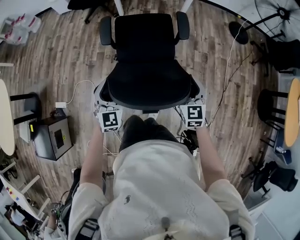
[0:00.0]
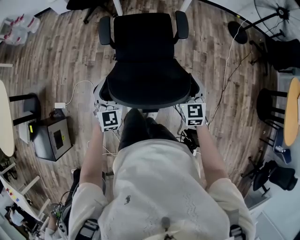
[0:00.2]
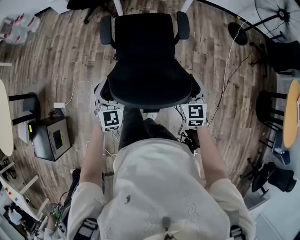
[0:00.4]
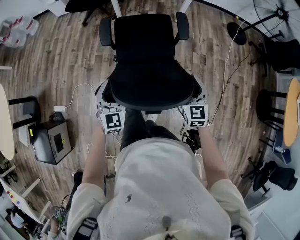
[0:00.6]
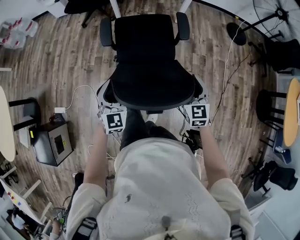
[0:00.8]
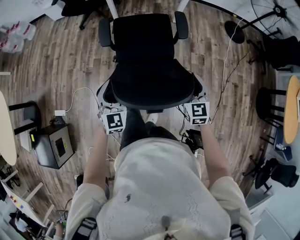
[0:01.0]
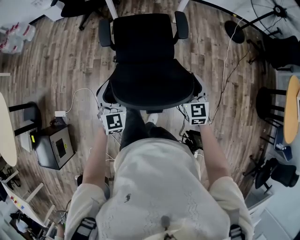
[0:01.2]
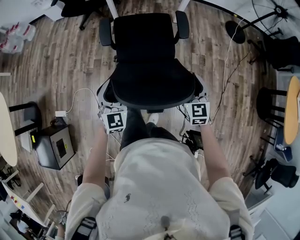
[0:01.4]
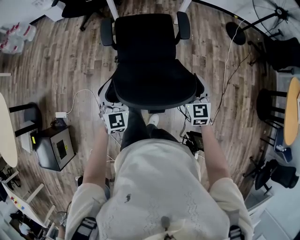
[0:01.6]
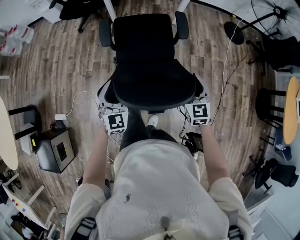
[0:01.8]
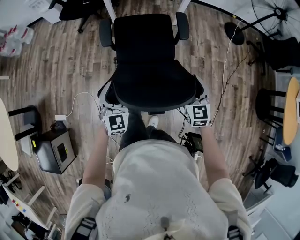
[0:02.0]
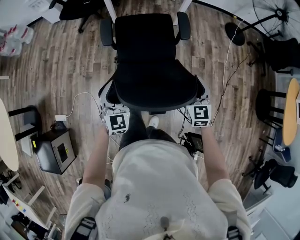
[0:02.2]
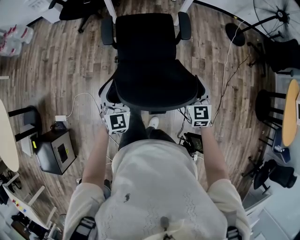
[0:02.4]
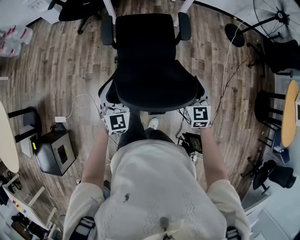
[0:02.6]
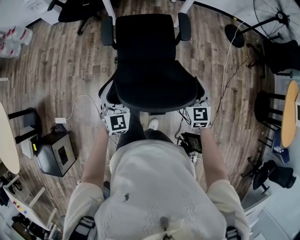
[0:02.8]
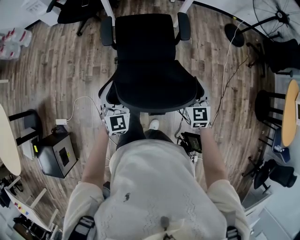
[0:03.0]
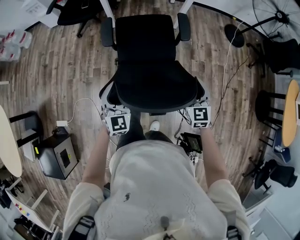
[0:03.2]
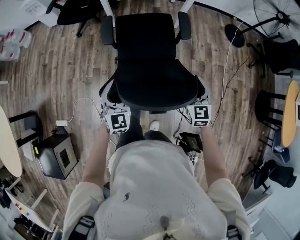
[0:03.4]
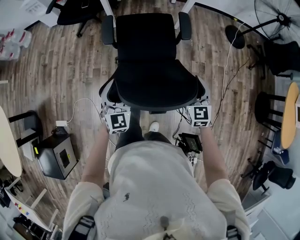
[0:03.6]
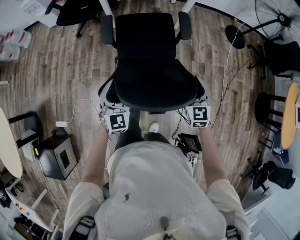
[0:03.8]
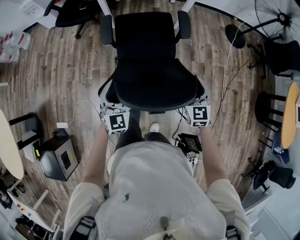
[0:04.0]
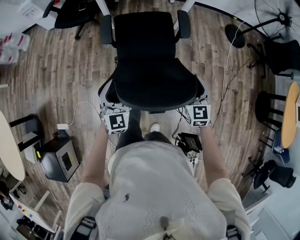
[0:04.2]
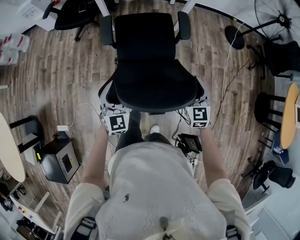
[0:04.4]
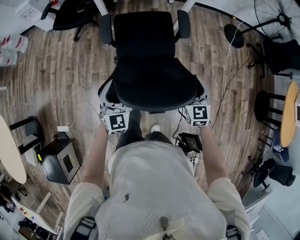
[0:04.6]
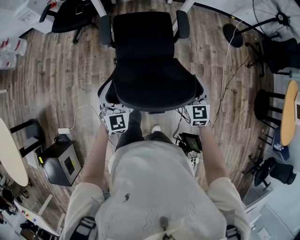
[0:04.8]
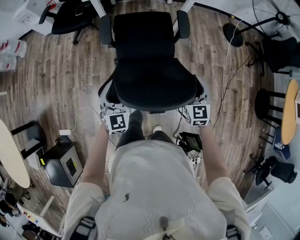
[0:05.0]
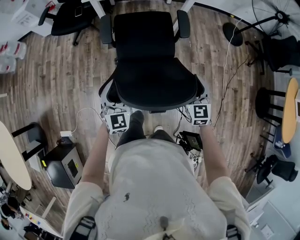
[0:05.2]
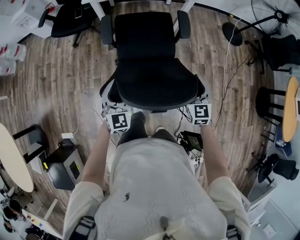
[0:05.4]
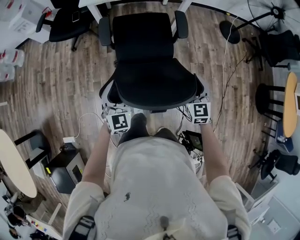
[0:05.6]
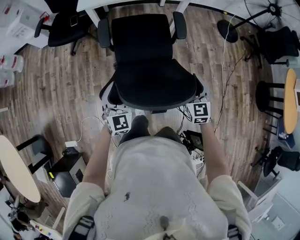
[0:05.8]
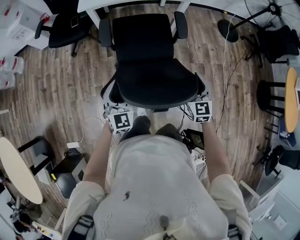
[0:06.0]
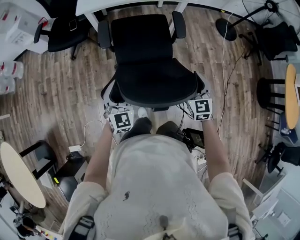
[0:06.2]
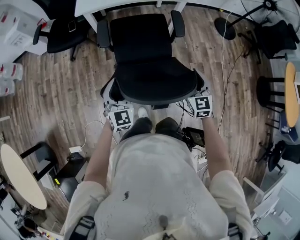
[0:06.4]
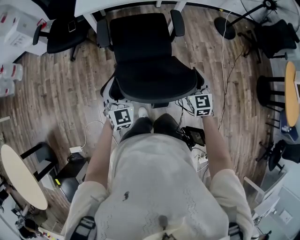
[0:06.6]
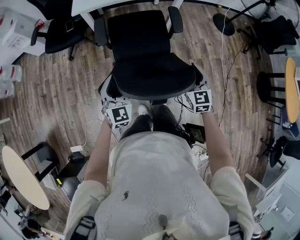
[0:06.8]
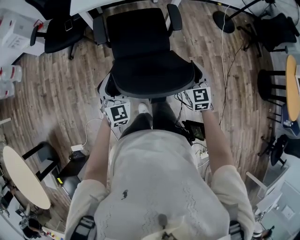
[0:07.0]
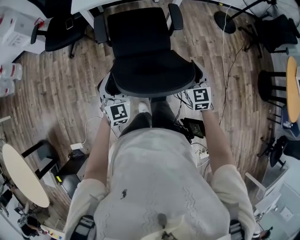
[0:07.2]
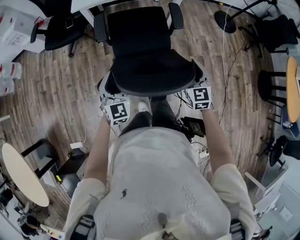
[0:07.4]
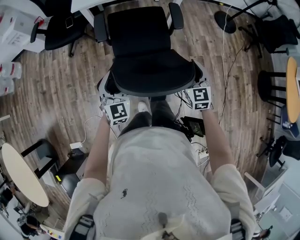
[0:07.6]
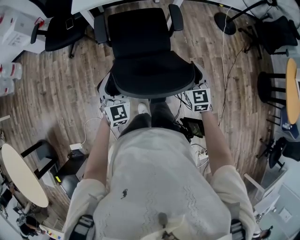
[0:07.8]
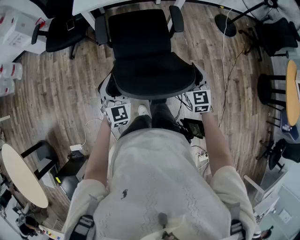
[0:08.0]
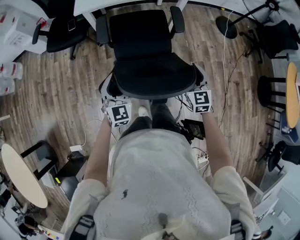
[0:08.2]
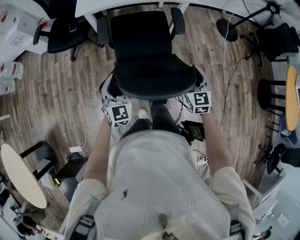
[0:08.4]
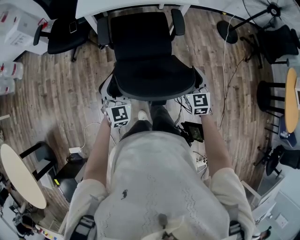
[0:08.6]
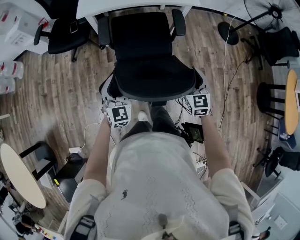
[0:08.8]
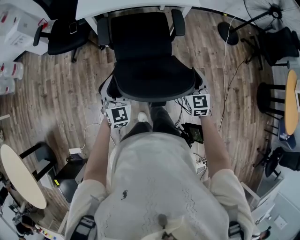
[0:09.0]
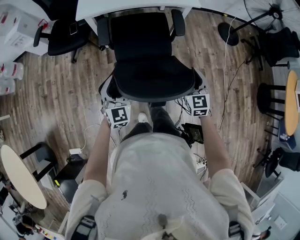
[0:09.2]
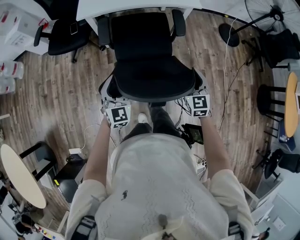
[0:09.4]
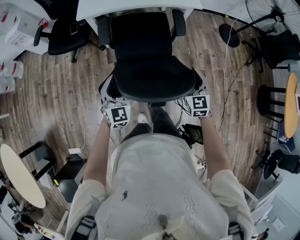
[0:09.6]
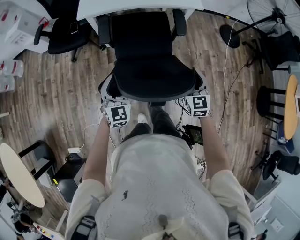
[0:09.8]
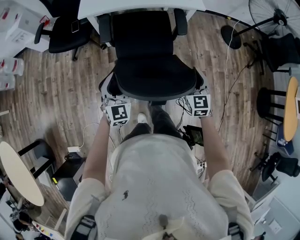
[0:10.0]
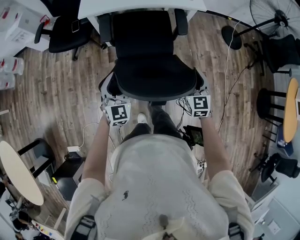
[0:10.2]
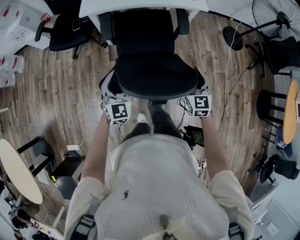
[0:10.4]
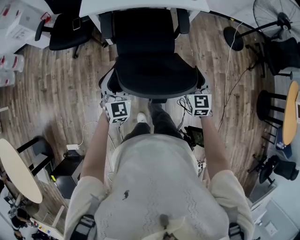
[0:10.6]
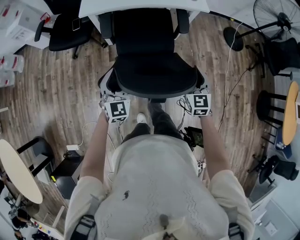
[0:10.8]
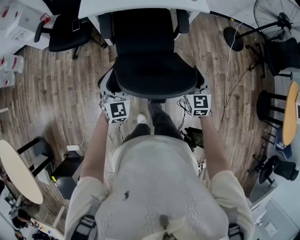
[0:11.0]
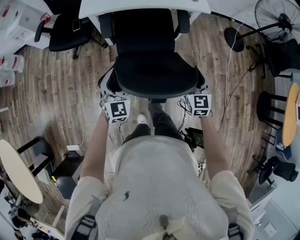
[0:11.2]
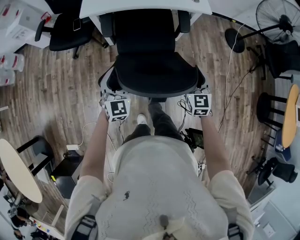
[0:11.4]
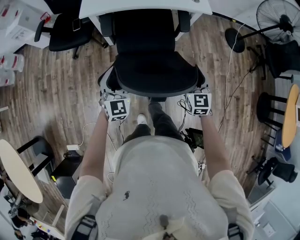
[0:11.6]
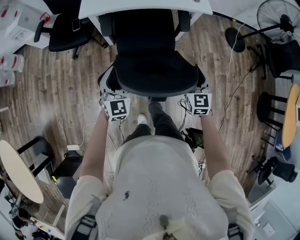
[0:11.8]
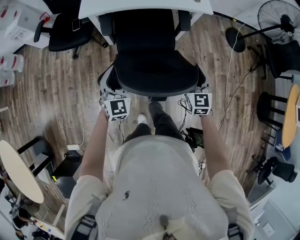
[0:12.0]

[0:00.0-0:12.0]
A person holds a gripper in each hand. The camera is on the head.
0:00.0 to 0:01.6: The grippers both shift forward by some 10 cm.
0:01.6 to 0:03.0: The grippers both shift forward by some 10 cm.
0:03.0 to 0:04.4: The grippers both shift forward by some 10 cm.
0:04.4 to 0:06.0: The grippers both shift forward and to the left by some 10 cm.
0:06.0 to 0:07.6: There are only small adjustments of the grippers.
0:07.6 to 0:09.0: The grippers both shift forward by some 10 cm.
0:09.0 to 0:10.4: The two grippers go roughly 5 cm forward.
0:10.4 to 0:12.0: Both grippers travel together forward, some 10 cm.

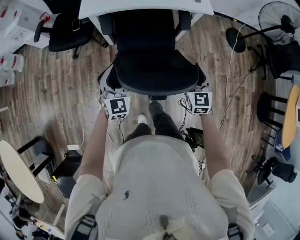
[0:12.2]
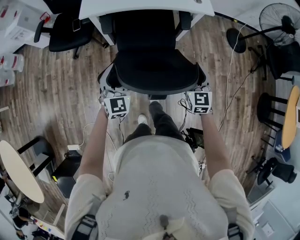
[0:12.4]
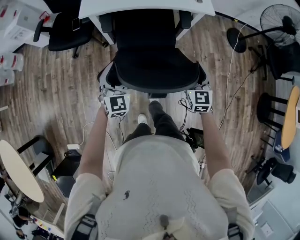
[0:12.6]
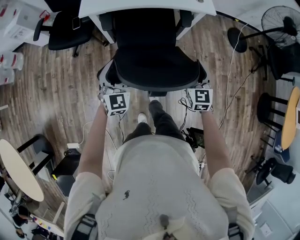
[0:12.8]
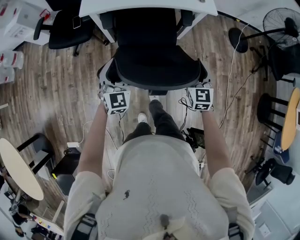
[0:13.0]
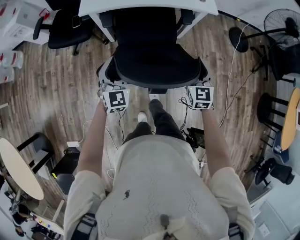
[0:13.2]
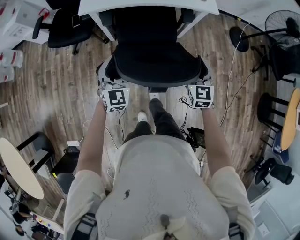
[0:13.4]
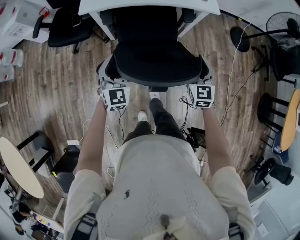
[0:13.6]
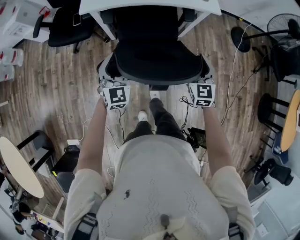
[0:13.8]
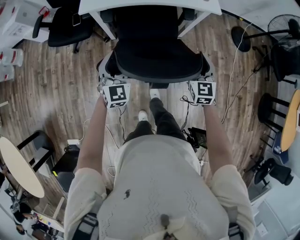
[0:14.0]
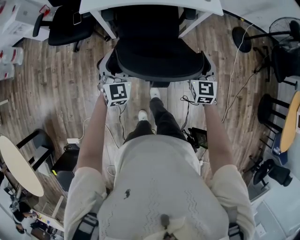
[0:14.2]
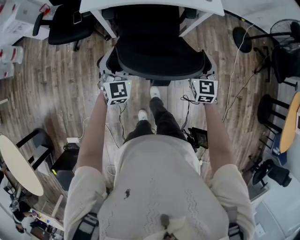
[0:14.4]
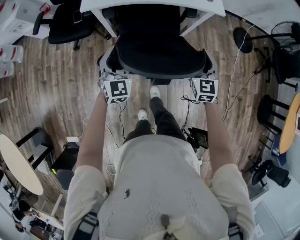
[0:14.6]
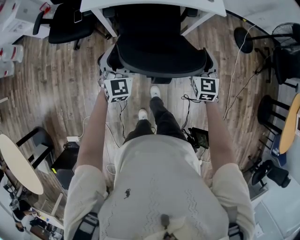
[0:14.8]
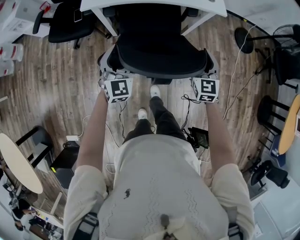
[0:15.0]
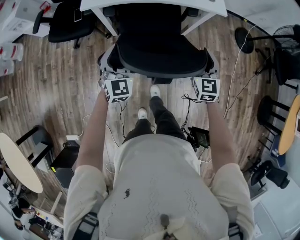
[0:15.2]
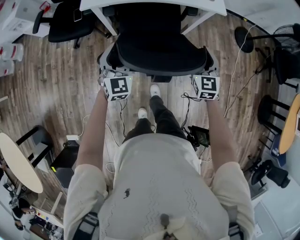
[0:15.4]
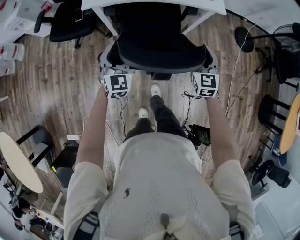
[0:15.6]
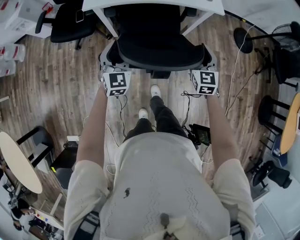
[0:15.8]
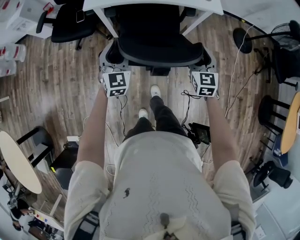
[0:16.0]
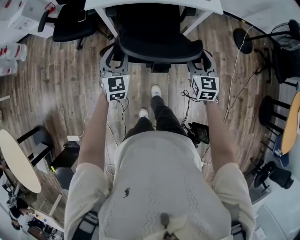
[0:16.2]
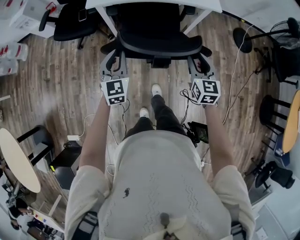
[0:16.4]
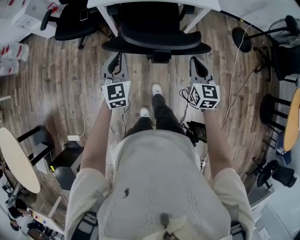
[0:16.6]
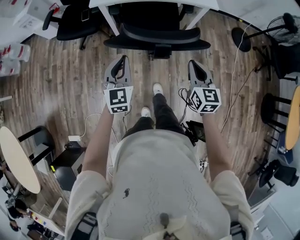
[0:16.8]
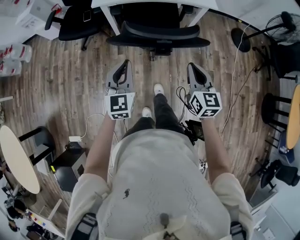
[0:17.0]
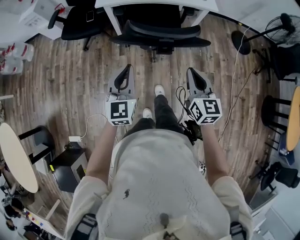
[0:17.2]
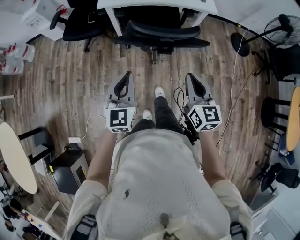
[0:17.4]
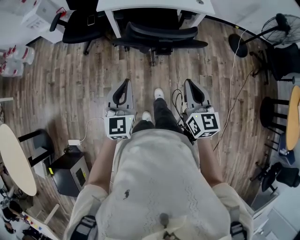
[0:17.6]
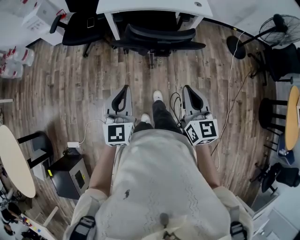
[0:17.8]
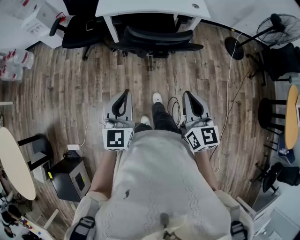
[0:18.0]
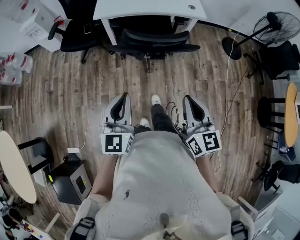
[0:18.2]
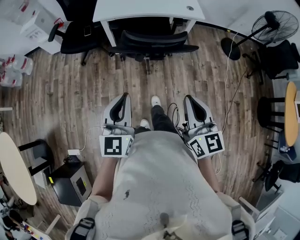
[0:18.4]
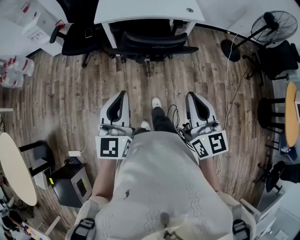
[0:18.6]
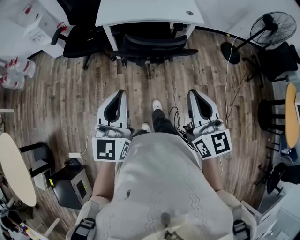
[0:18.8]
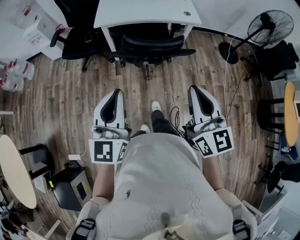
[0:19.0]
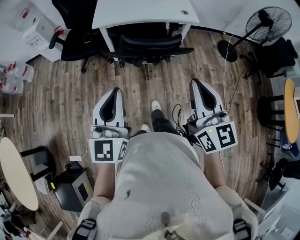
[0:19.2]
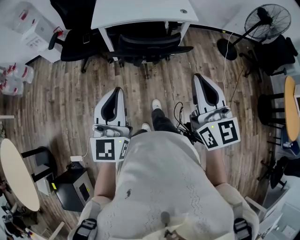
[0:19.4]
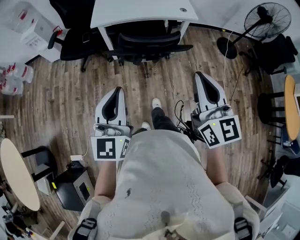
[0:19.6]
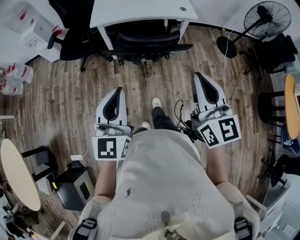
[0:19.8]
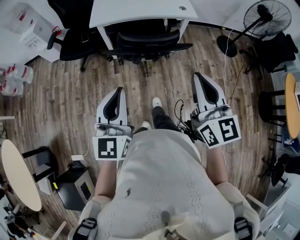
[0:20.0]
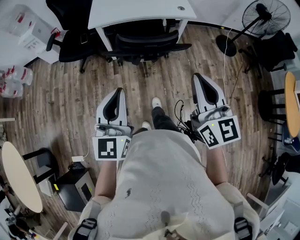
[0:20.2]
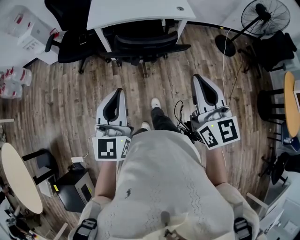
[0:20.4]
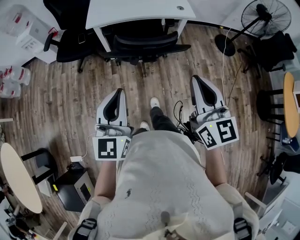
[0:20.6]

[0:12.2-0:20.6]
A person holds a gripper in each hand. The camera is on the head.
0:12.2 to 0:13.6: Both grippers move forward, roughly 10 cm.
0:13.6 to 0:15.0: Both grippers travel together forward, approximately 5 cm.
0:15.0 to 0:16.4: The two grippers go approximately 10 cm backward. The left gripper closes, while the right gripper closes.
0:16.4 to 0:17.8: The left gripper is displaced backward by some 30 cm. The right gripper shifts some 35 cm backward and upward, and closes its fingers.
0:17.8 to 0:19.2: The right gripper heads upward, covering approximately 15 cm. The left gripper travels upward and backward by roughly 15 cm.
0:19.2 to 0:20.6: The left gripper shifts by about 5 cm.

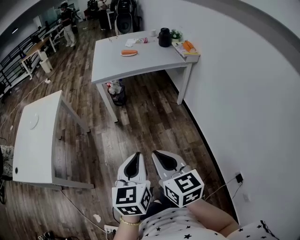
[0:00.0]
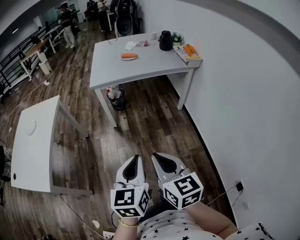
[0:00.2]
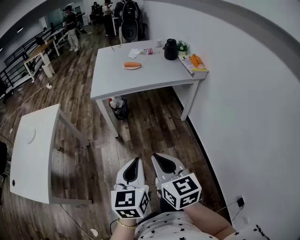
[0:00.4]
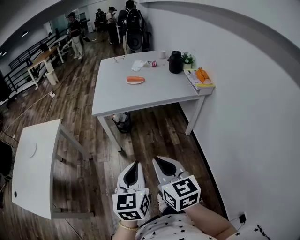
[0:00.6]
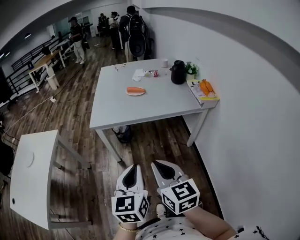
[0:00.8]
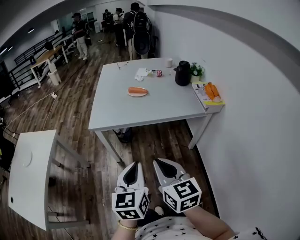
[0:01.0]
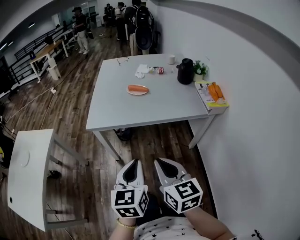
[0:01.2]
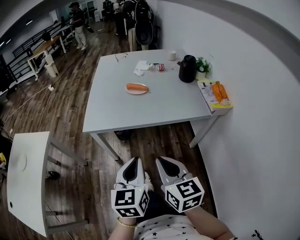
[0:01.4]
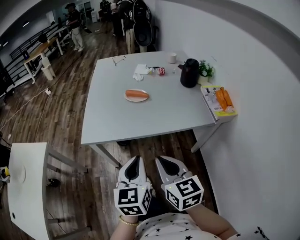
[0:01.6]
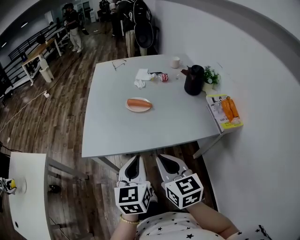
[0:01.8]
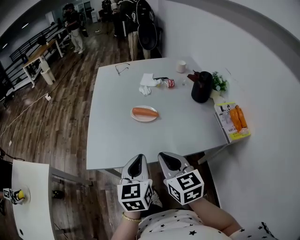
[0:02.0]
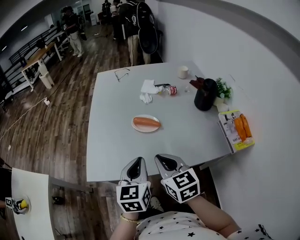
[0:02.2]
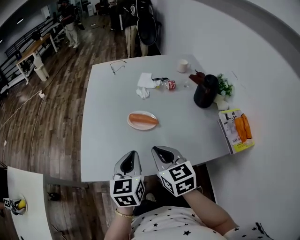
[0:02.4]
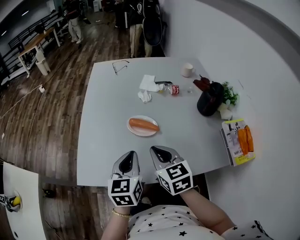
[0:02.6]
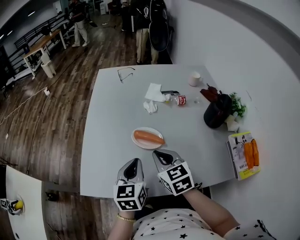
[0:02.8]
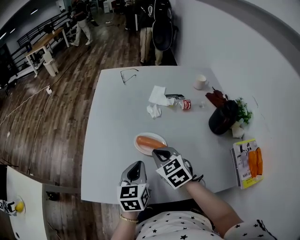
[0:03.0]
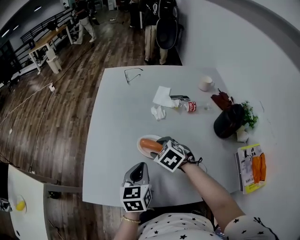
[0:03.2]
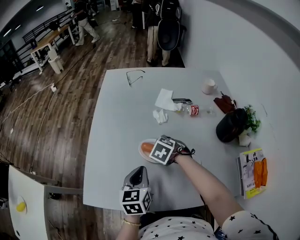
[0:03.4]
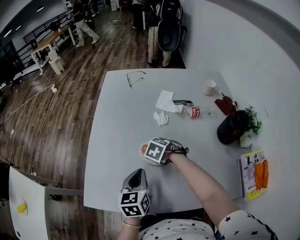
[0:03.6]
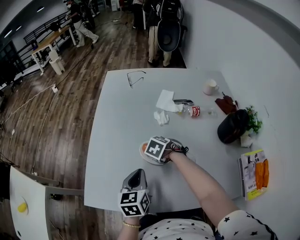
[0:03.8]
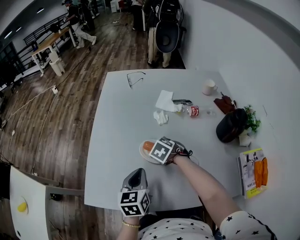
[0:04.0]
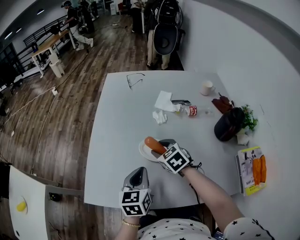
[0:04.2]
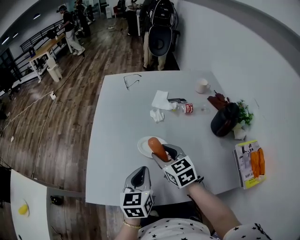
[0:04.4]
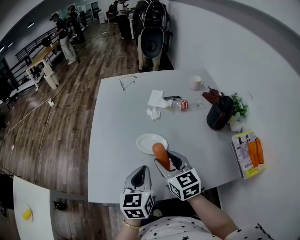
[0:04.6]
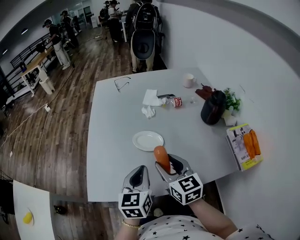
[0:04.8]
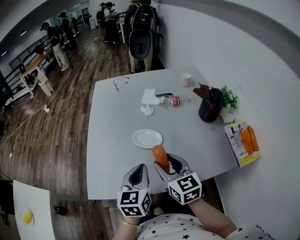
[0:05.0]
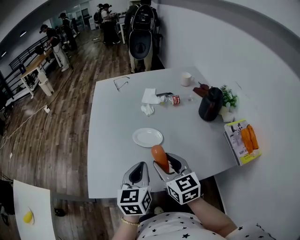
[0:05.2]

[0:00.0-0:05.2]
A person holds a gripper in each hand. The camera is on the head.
0:00.0 to 0:01.8: Both grippers are carried forward, about 70 cm.
0:01.8 to 0:03.4: The left gripper travels forward by approximately 30 cm, while the right gripper goes roughly 50 cm forward and downward, tips its fingers downward by some 50 degrees, and opens up.
0:03.4 to 0:05.2: The left gripper changes place by about 15 cm, while the right gripper shifts by roughly 25 cm, and points its fingers about 50 degrees further upward.
